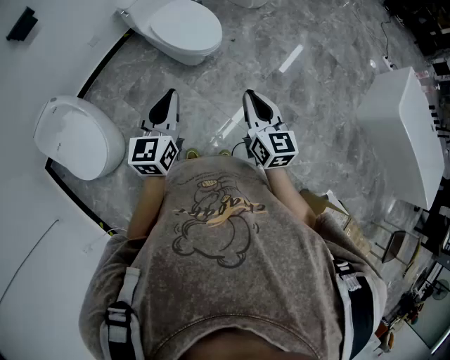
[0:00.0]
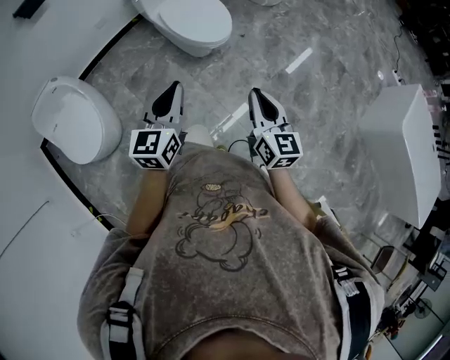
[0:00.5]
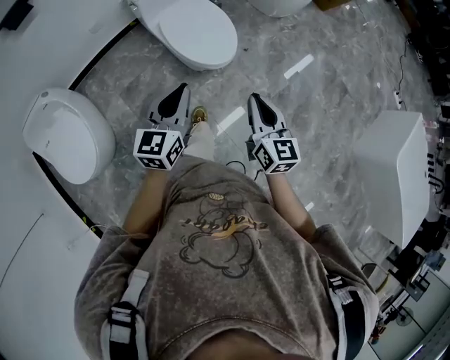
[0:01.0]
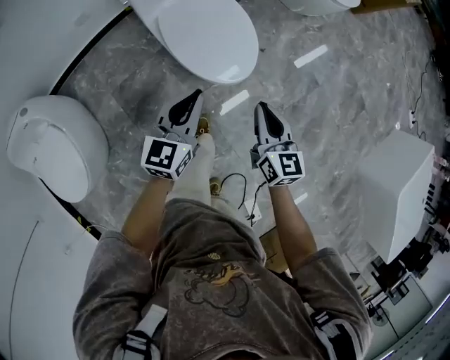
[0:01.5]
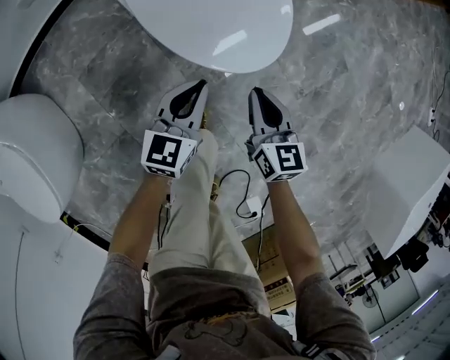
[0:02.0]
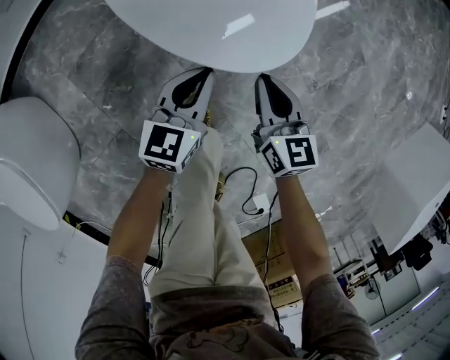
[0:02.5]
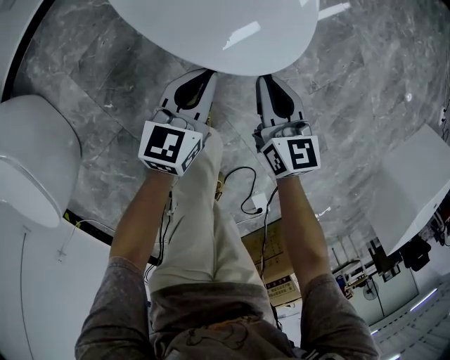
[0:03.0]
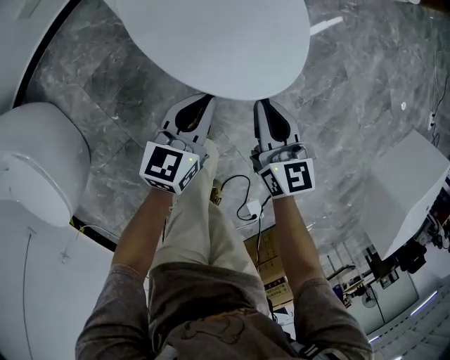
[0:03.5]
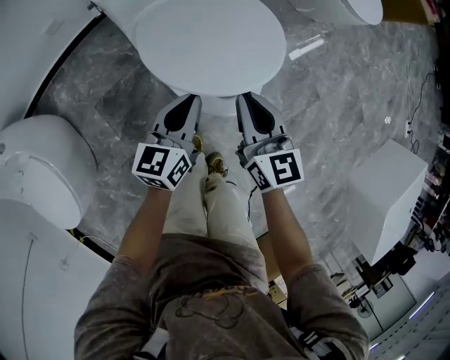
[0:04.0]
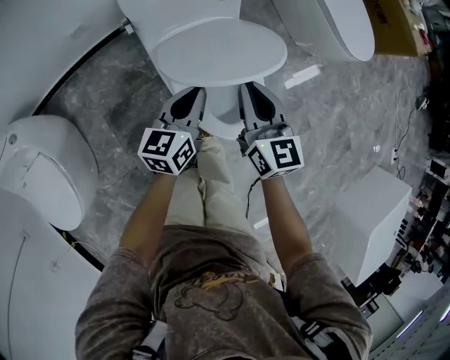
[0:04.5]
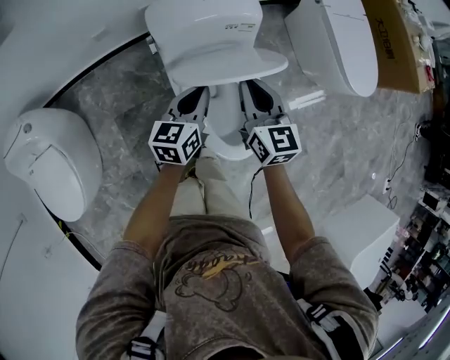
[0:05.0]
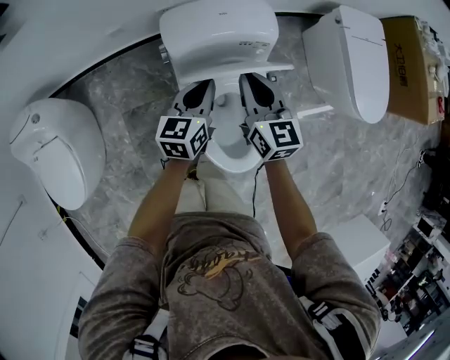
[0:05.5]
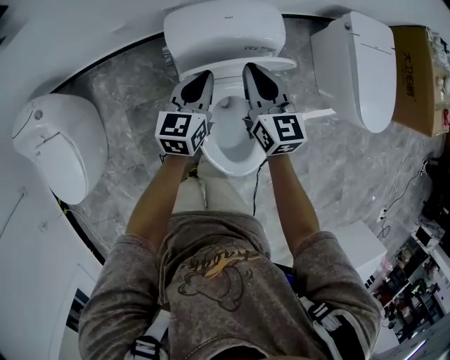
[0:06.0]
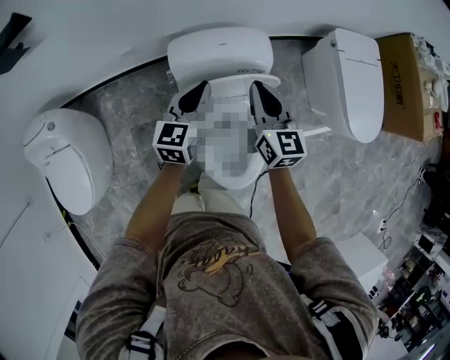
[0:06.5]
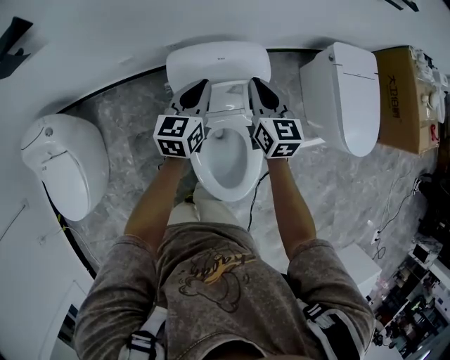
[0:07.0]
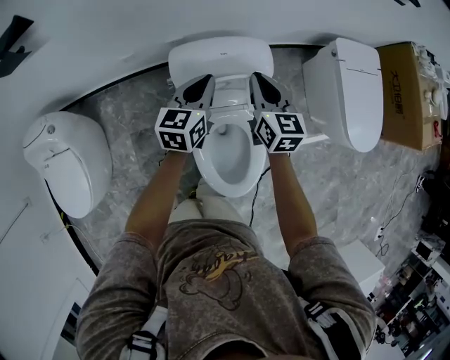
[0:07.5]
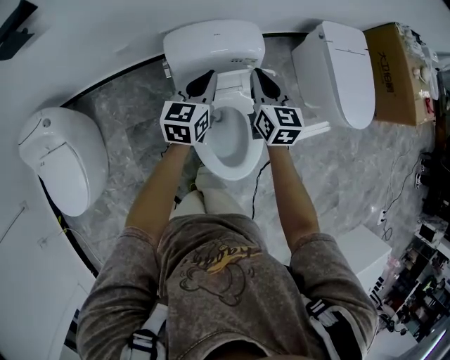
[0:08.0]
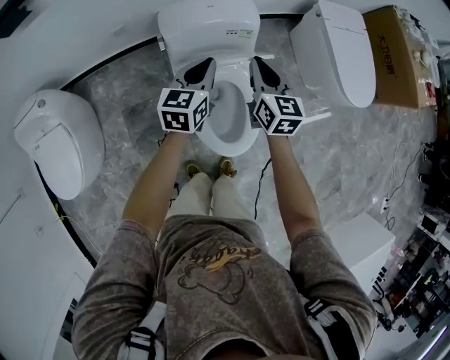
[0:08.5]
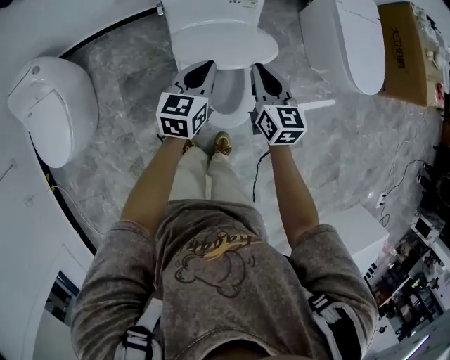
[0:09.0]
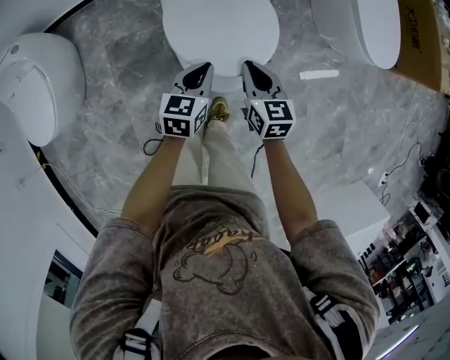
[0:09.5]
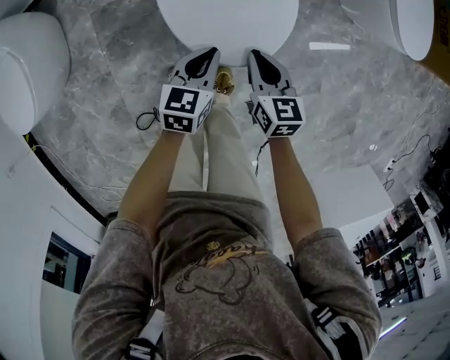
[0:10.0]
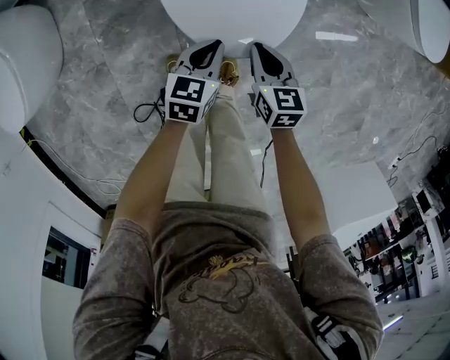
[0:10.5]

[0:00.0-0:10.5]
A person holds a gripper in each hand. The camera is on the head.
0:00.0 to 0:02.0: Both grippers travel together downward and forward, some 60 cm. The right gripper rotates about 20 degrees.
0:02.0 to 0:04.0: Both grippers travel together upward and forward, approximately 25 cm.
0:04.0 to 0:06.5: The grippers both shift forward and upward by roughly 35 cm. The left gripper rotates about 20 degrees.
0:06.5 to 0:08.5: The right gripper shifts approximately 10 cm backward. The left gripper heads backward and to the right, covering some 10 cm.
0:08.5 to 0:10.5: The grippers both shift downward and backward by some 40 cm. The right gripper changes its angle by about 30 degrees. The left gripper changes its angle by about 20 degrees.

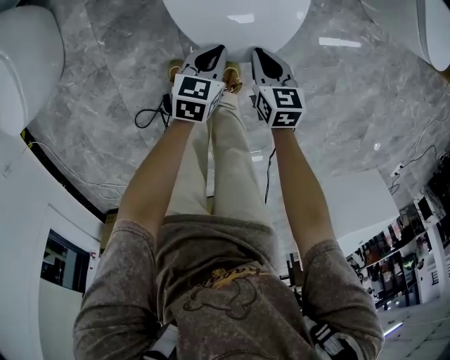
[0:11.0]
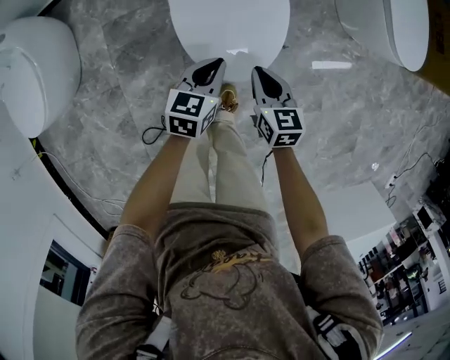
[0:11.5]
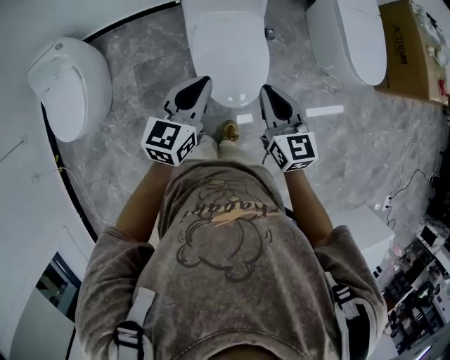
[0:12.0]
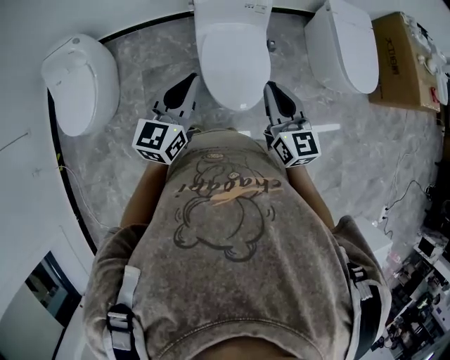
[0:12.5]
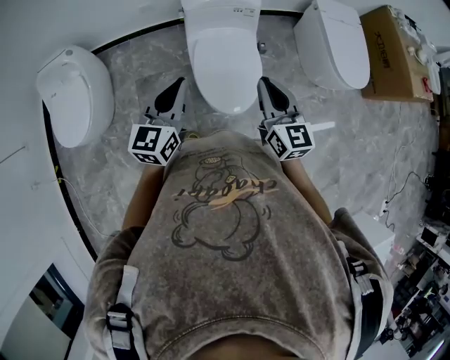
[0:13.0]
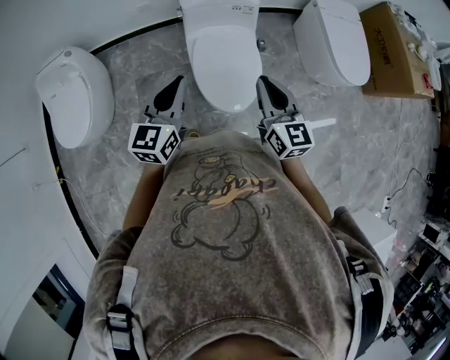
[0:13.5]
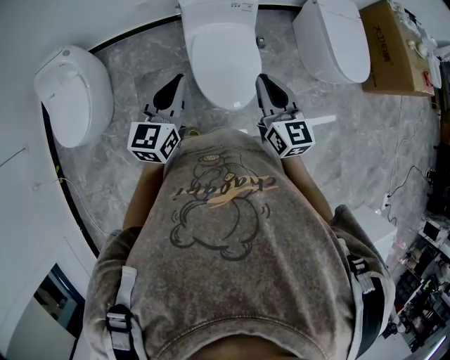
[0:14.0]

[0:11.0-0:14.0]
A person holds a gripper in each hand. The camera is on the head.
0:11.0 to 0:12.5: Both grippers move upward, about 50 cm. The left gripper points its fingers about 40 degrees further upward. Meanwhile the right gripper tilts its fingers roughly 40 degrees upward.
0:12.5 to 0:14.0: The grippers make only small movements.

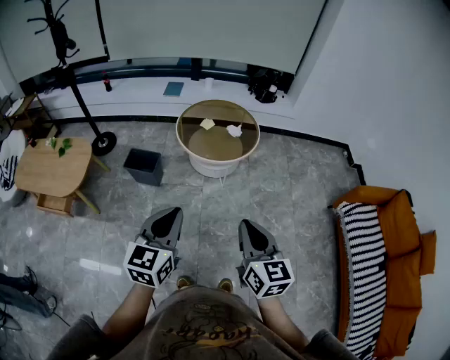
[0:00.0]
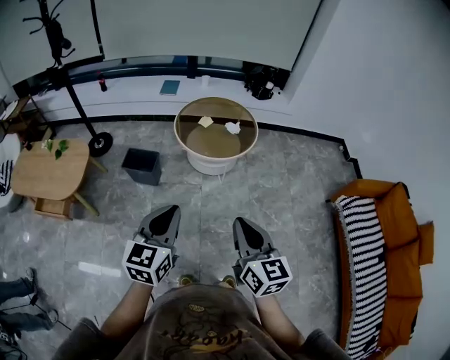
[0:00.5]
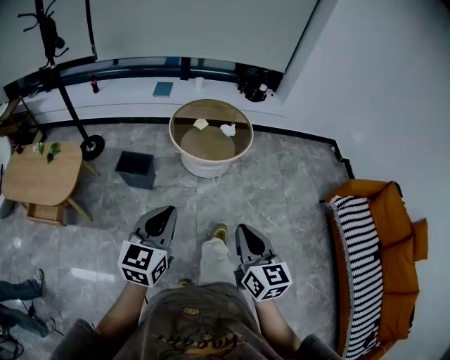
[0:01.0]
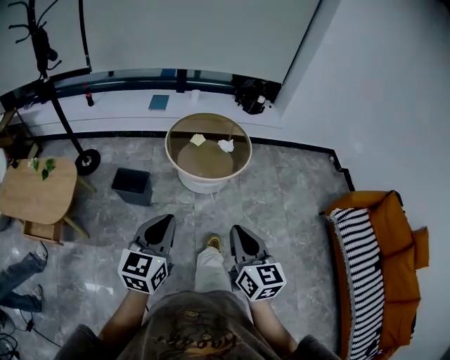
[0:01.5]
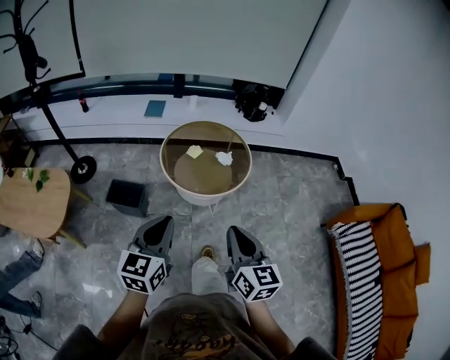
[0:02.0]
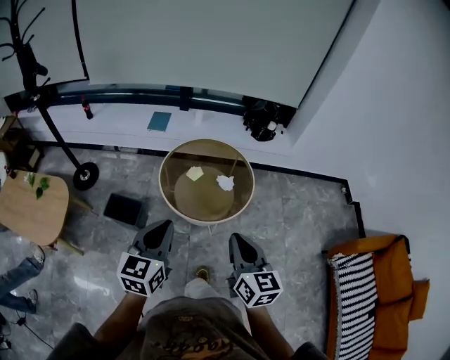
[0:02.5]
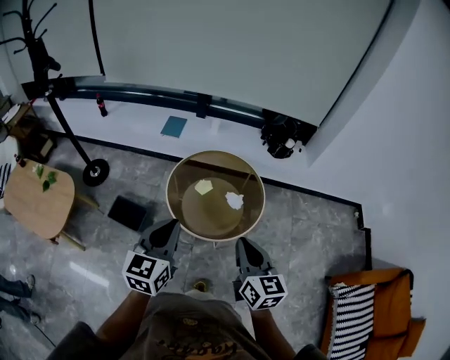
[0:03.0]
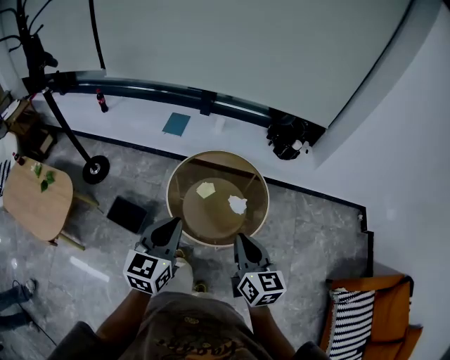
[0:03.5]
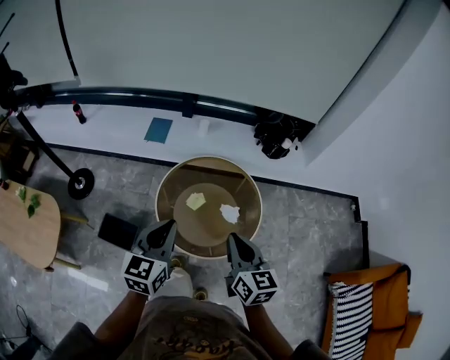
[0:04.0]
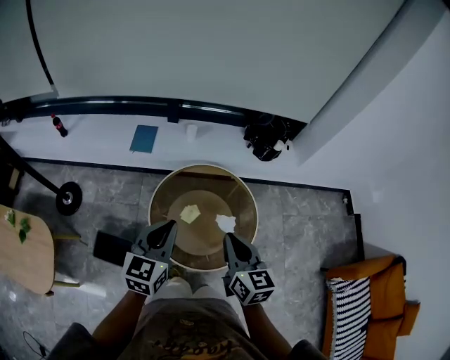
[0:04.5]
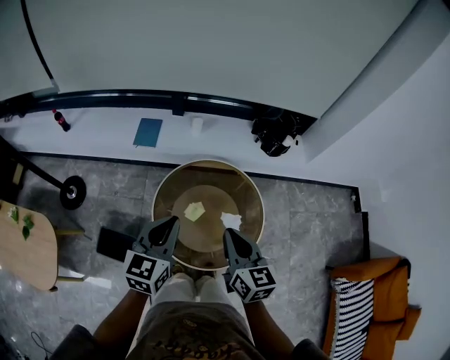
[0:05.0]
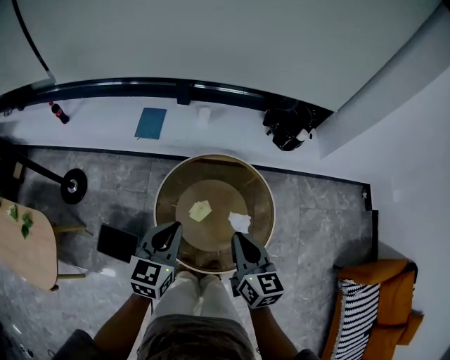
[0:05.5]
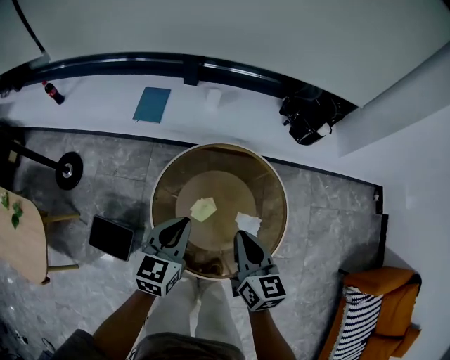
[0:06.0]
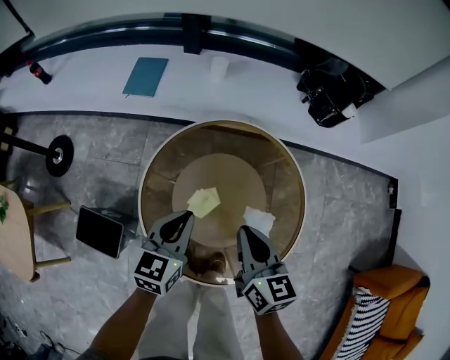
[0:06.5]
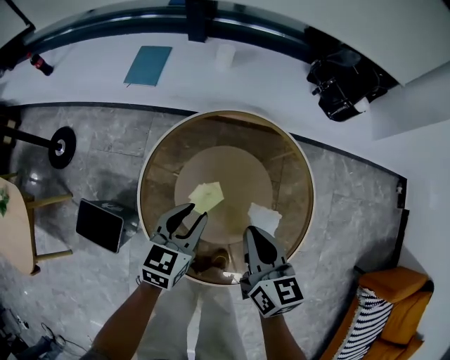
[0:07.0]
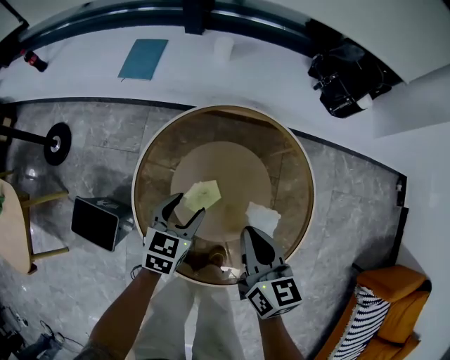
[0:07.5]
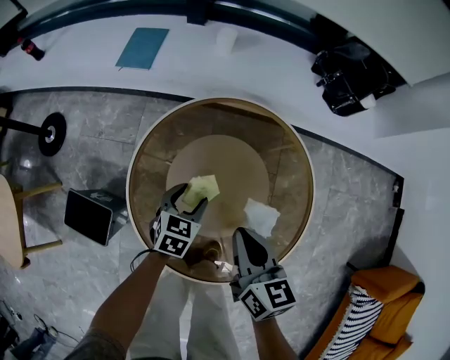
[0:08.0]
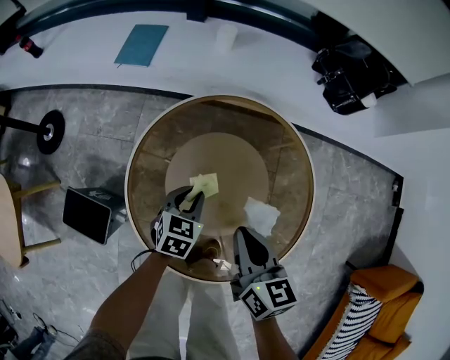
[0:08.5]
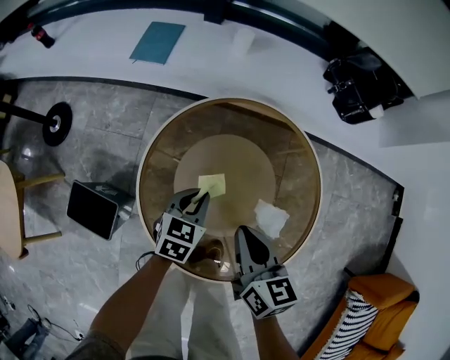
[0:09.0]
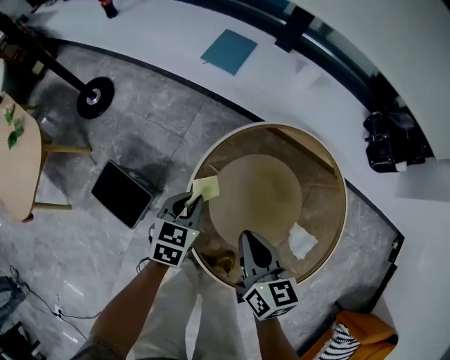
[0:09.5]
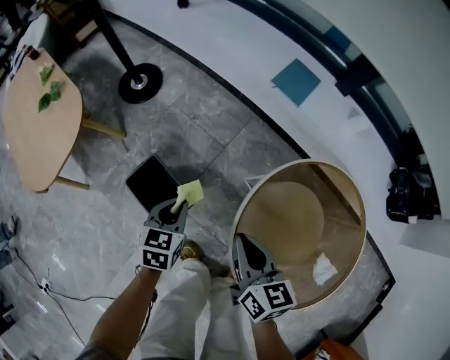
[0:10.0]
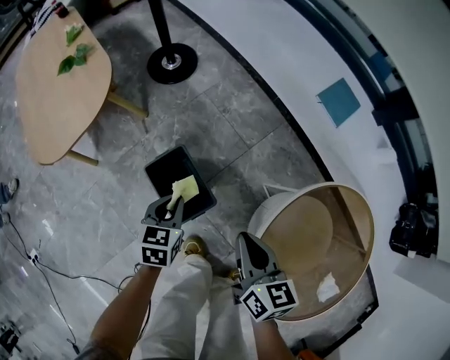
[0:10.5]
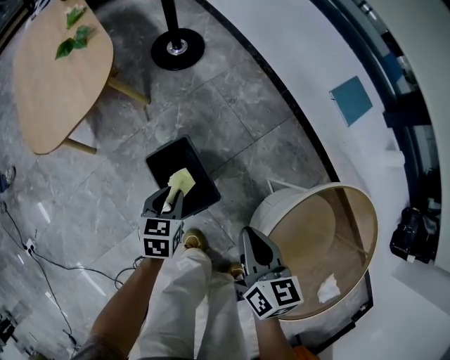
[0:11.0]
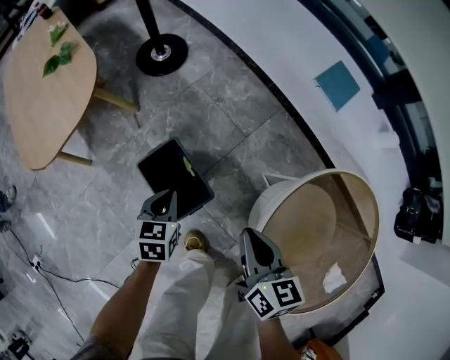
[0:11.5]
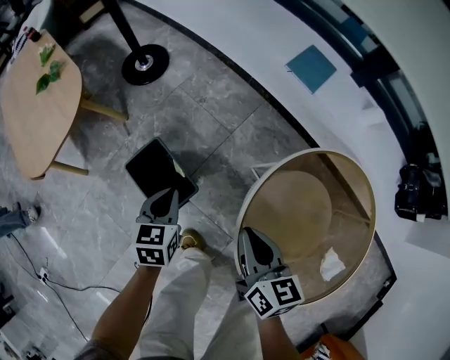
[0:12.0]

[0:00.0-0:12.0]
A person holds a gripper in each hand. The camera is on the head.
0:00.0 to 0:02.0: The grippers both shift forward by roughly 20 cm.
0:02.0 to 0:04.0: Both grippers move forward, about 35 cm.
0:04.0 to 0:06.0: The right gripper moves forward and downward, roughly 25 cm. The left gripper goes about 25 cm downward and forward.
0:06.0 to 0:08.0: The right gripper is displaced downward by approximately 15 cm. The left gripper moves downward, about 30 cm, swivels some 20 degrees, and opens its fingers.
0:08.0 to 0:10.0: The right gripper changes place by roughly 30 cm, and changes its angle by some 30 degrees. The left gripper shifts by about 40 cm, rotates about 40 degrees, and closes up.
0:10.0 to 0:12.0: The right gripper reaches some 10 cm to the left, then returns. Meanwhile the left gripper moves about 15 cm to the left and comes back.

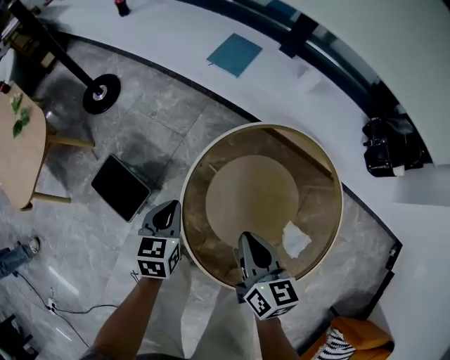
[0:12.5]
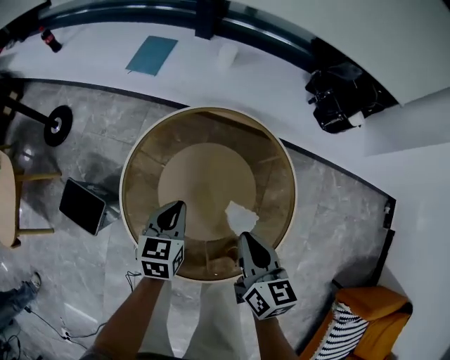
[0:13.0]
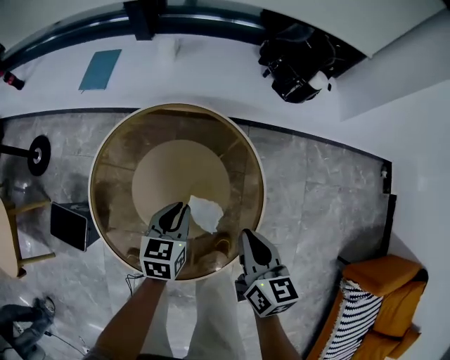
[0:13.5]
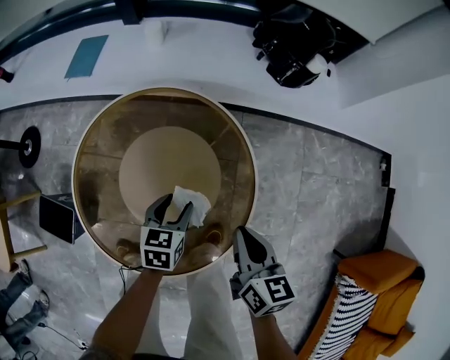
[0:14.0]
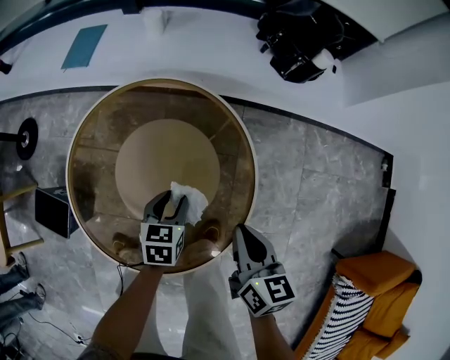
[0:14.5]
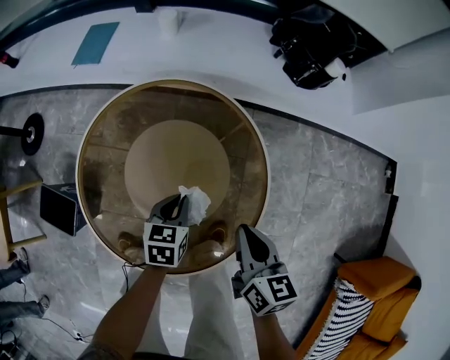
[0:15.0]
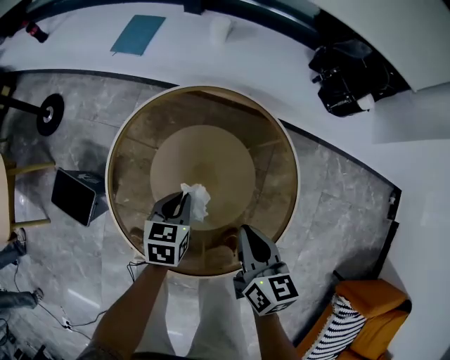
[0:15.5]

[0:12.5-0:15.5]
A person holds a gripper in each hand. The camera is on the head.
0:12.5 to 0:14.0: The right gripper ends up about 35 cm from where it was, and changes its angle by approximately 30 degrees, while the left gripper moves about 40 cm, rotates some 30 degrees, and opens.
0:14.0 to 0:15.5: The two grippers go about 10 cm to the left. The left gripper closes.
